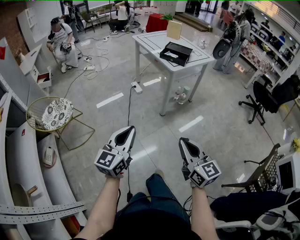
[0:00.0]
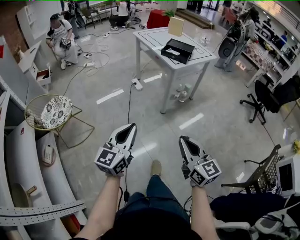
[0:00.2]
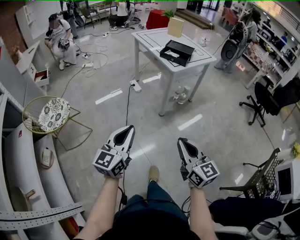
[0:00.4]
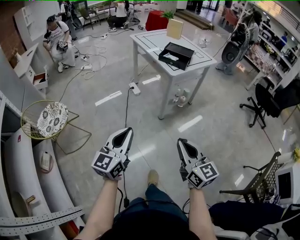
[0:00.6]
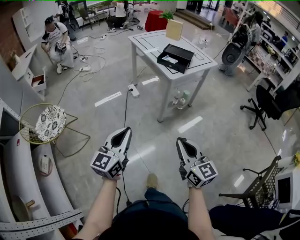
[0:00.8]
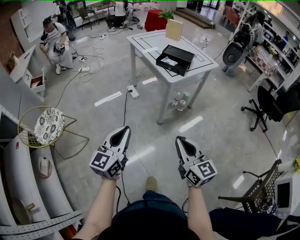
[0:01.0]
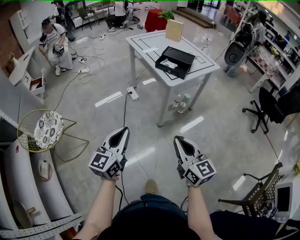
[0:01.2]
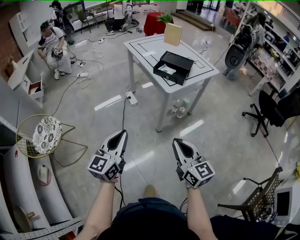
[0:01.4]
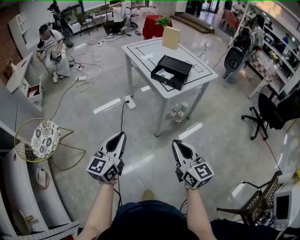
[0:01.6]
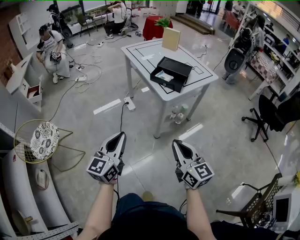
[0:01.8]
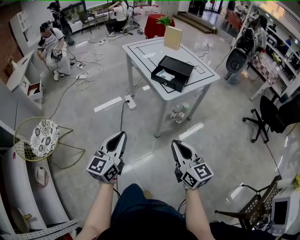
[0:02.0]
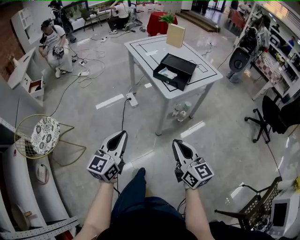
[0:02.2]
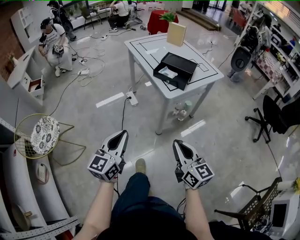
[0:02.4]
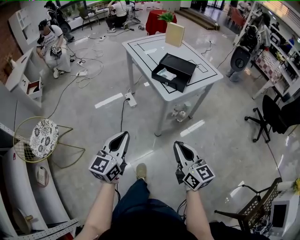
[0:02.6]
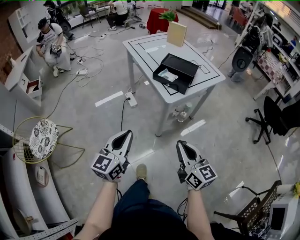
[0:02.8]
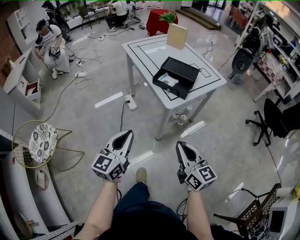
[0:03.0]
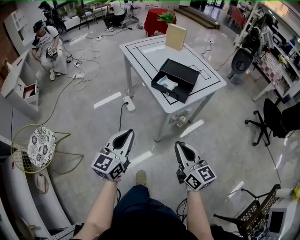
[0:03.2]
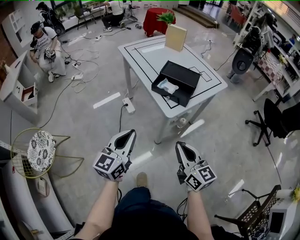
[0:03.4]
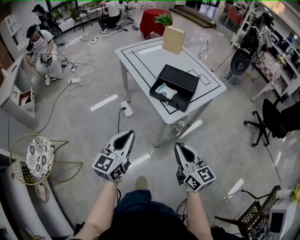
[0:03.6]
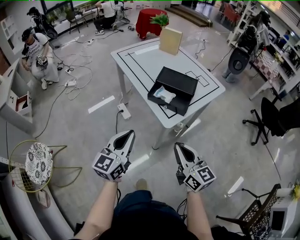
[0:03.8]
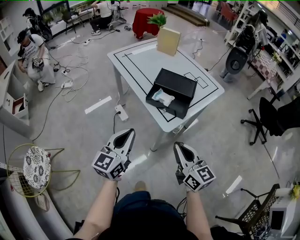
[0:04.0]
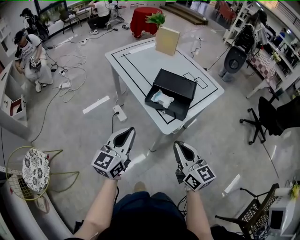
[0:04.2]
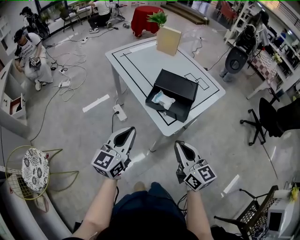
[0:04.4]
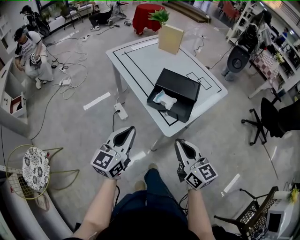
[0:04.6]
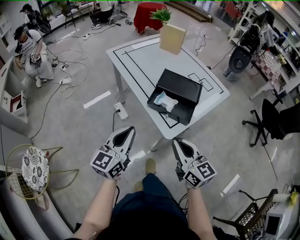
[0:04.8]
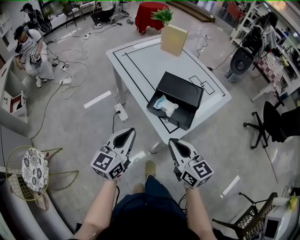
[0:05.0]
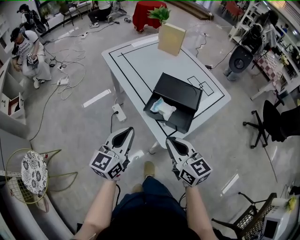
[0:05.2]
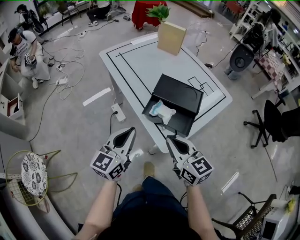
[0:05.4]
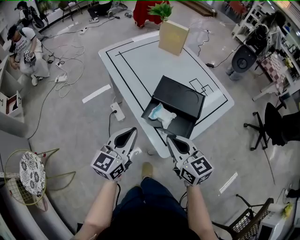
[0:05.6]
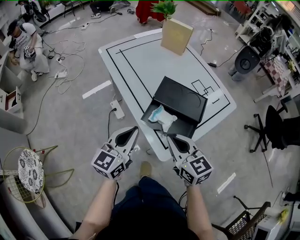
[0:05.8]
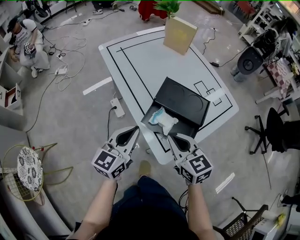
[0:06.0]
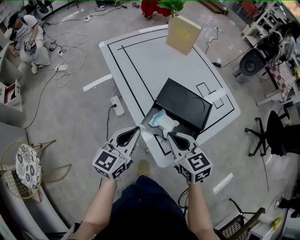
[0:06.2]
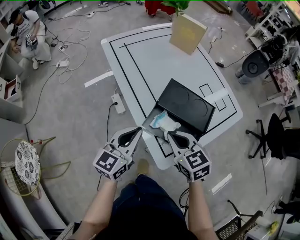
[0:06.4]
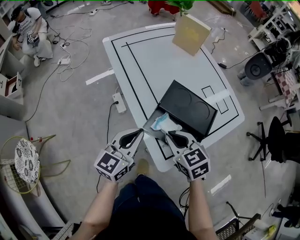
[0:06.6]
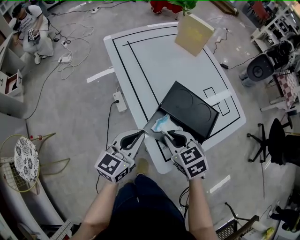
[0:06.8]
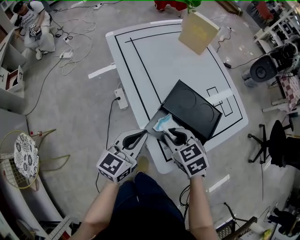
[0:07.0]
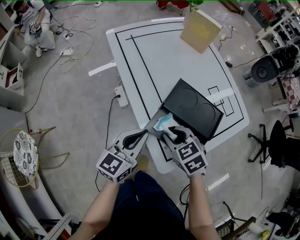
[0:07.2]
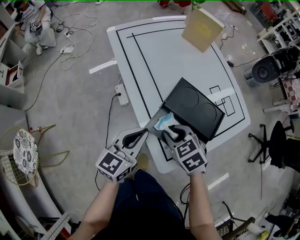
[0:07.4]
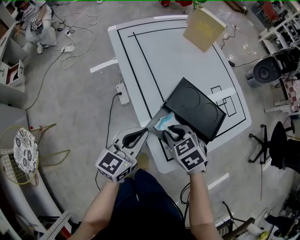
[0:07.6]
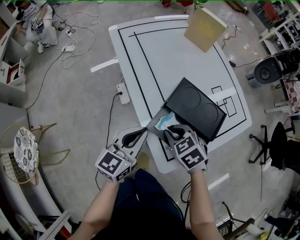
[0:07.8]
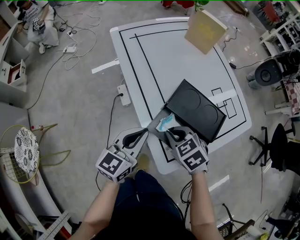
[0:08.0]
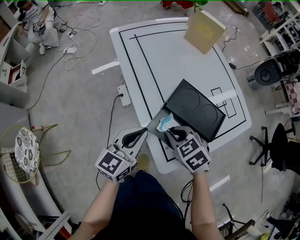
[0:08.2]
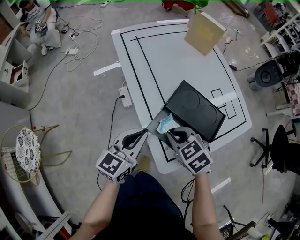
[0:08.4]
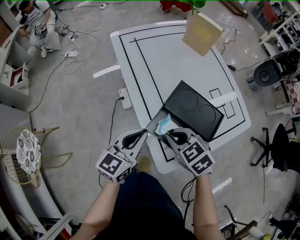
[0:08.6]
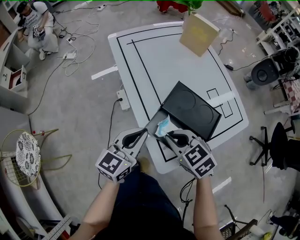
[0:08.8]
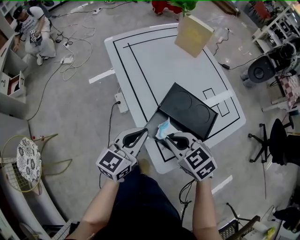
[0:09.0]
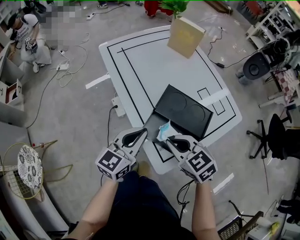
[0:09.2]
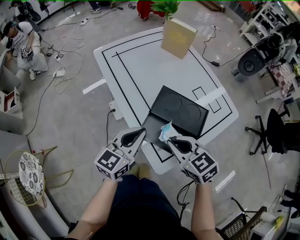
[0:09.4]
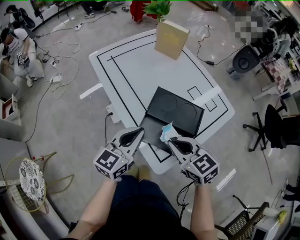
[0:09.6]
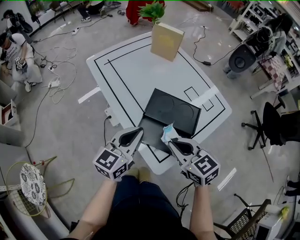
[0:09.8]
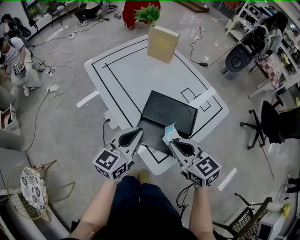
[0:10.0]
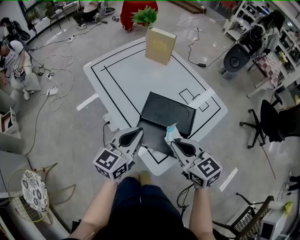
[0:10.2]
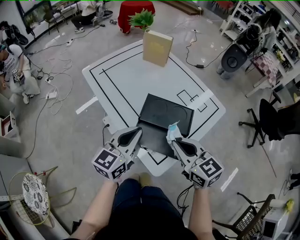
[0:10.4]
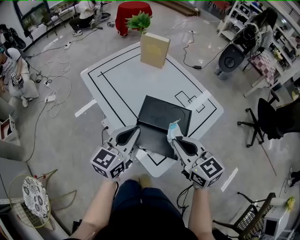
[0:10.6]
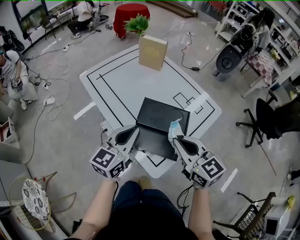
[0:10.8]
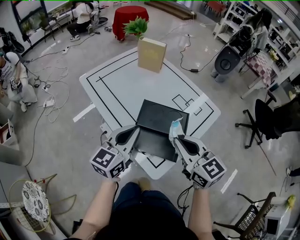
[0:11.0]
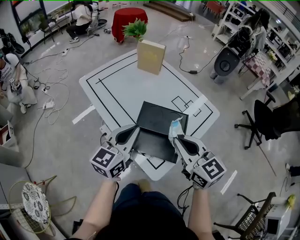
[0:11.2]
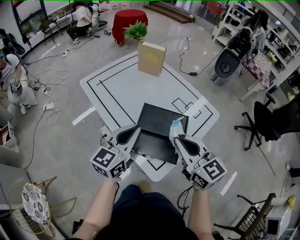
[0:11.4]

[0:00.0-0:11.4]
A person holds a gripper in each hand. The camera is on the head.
0.0 to 1.4 s: Both grippers move forward, some 30 cm.
1.4 to 2.8 s: Both grippers travel together forward and to the right, roughly 15 cm.
2.8 to 4.2 s: Both grippers move forward, some 25 cm.
4.2 to 5.6 s: Both grippers travel together forward, some 15 cm.
5.6 to 7.2 s: The right gripper travels downward and forward by about 15 cm, tilts its fingers roughly 30 degrees downward, and opens. The left gripper is displaced forward and downward by about 10 cm.
7.2 to 8.6 s: The right gripper closes up.
8.6 to 10.0 s: The right gripper is displaced upward and to the right by roughly 10 cm, and turns by roughly 30 degrees. The left gripper goes some 5 cm upward.
10.0 to 11.4 s: The two grippers go approximately 10 cm upward.

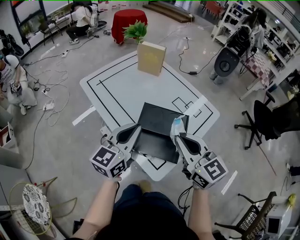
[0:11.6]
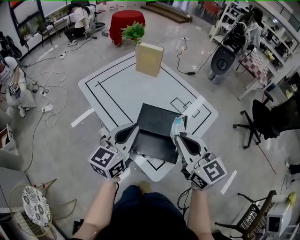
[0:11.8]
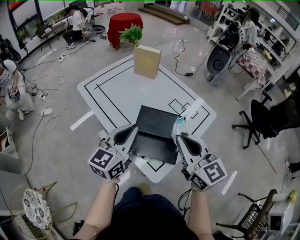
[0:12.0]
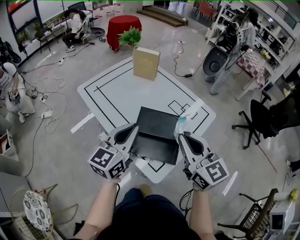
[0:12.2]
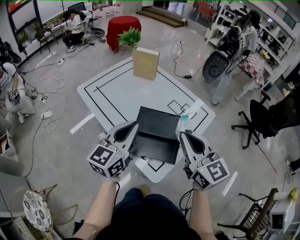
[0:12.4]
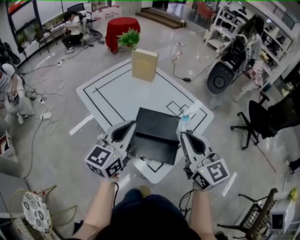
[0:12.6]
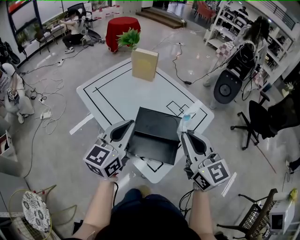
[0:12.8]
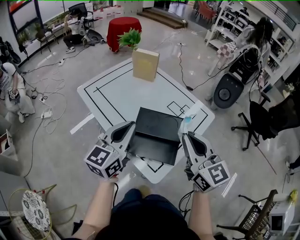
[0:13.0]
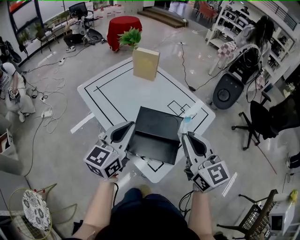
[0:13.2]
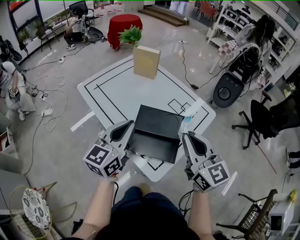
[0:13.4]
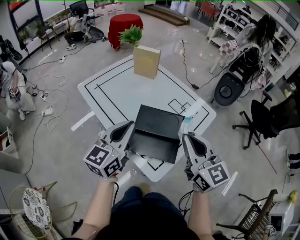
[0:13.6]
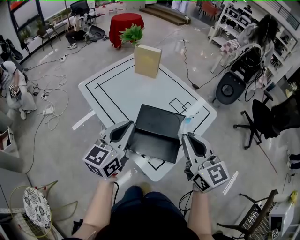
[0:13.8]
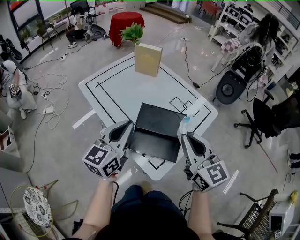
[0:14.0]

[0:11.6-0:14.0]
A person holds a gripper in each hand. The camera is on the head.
11.6 to 12.8 s: The right gripper shifts by roughly 5 cm.
12.8 to 14.0 s: The grippers stay close to where they were, moving slightly.

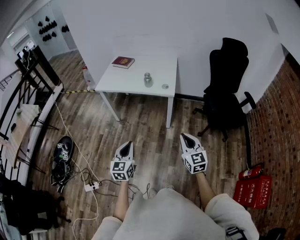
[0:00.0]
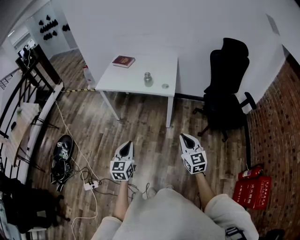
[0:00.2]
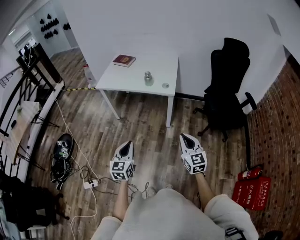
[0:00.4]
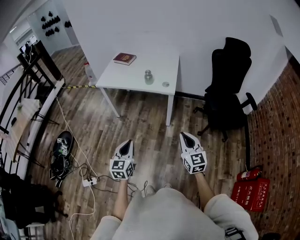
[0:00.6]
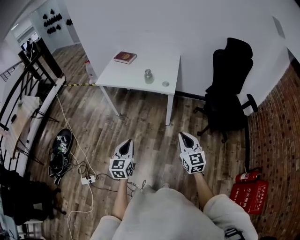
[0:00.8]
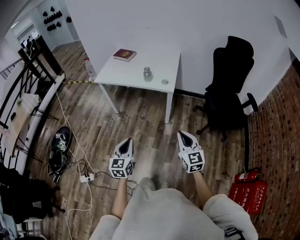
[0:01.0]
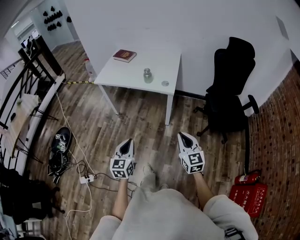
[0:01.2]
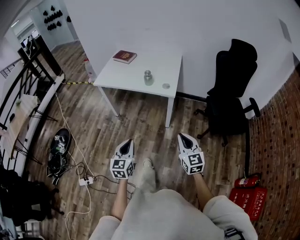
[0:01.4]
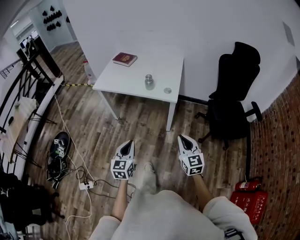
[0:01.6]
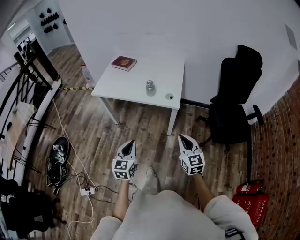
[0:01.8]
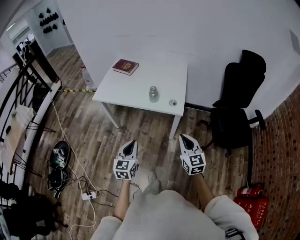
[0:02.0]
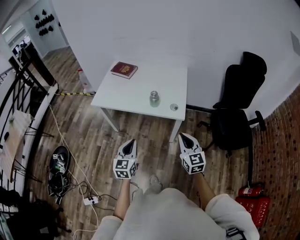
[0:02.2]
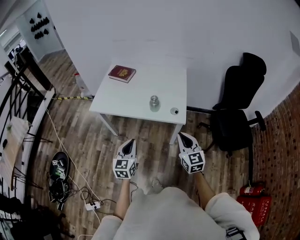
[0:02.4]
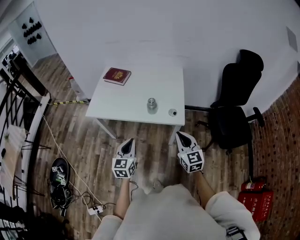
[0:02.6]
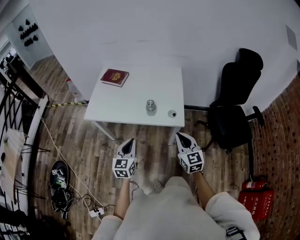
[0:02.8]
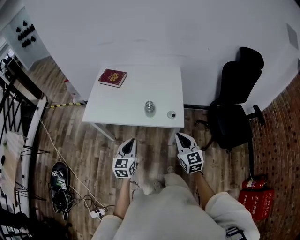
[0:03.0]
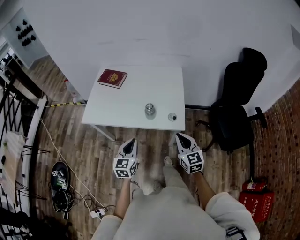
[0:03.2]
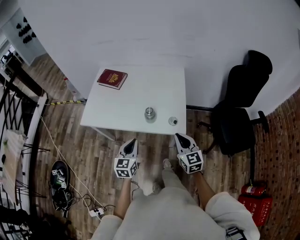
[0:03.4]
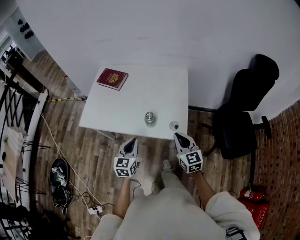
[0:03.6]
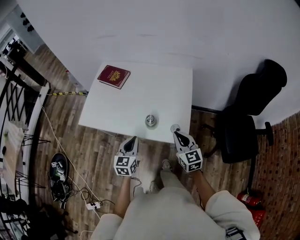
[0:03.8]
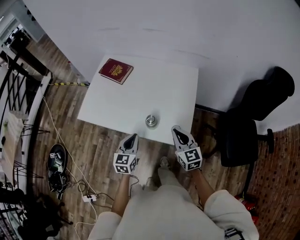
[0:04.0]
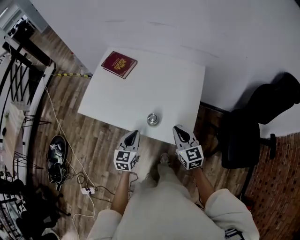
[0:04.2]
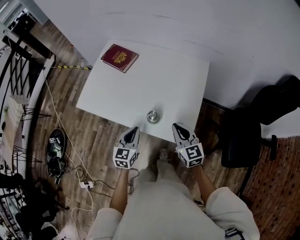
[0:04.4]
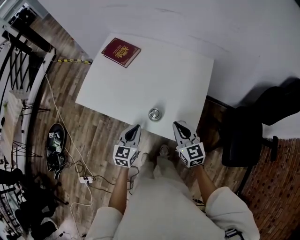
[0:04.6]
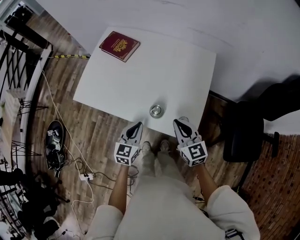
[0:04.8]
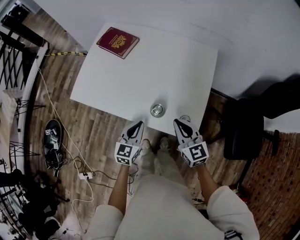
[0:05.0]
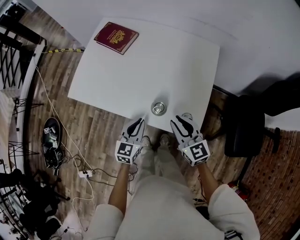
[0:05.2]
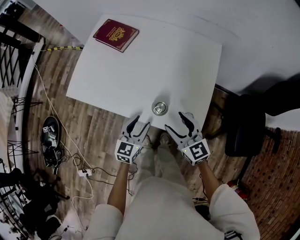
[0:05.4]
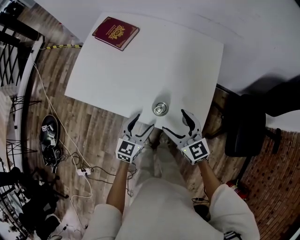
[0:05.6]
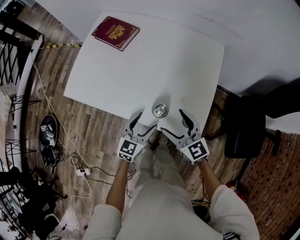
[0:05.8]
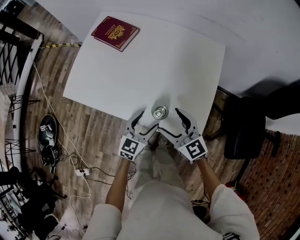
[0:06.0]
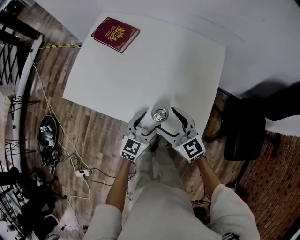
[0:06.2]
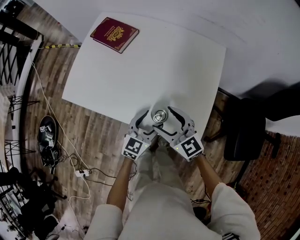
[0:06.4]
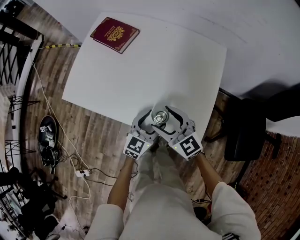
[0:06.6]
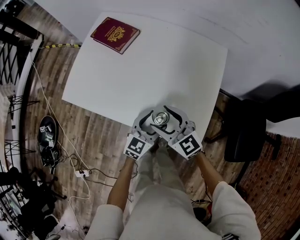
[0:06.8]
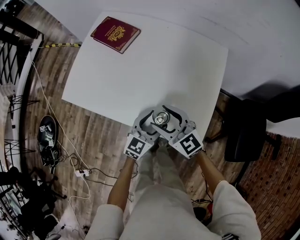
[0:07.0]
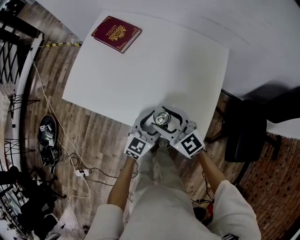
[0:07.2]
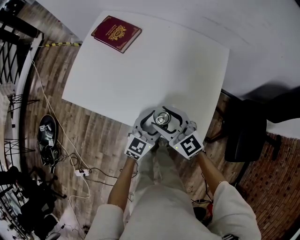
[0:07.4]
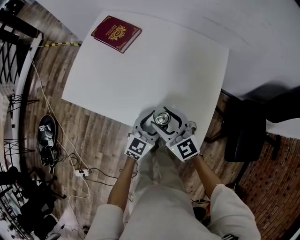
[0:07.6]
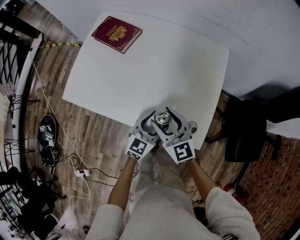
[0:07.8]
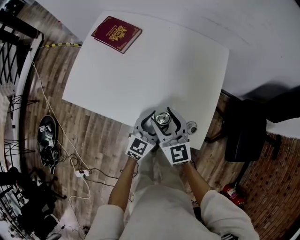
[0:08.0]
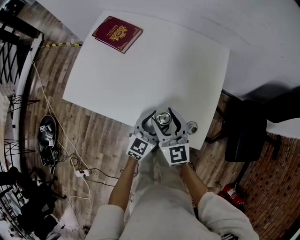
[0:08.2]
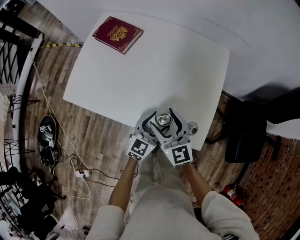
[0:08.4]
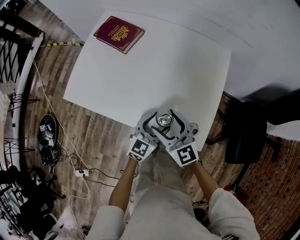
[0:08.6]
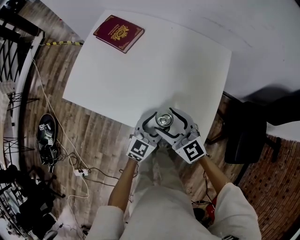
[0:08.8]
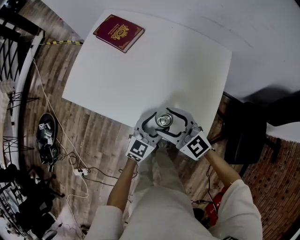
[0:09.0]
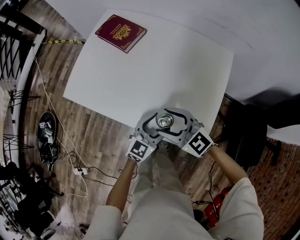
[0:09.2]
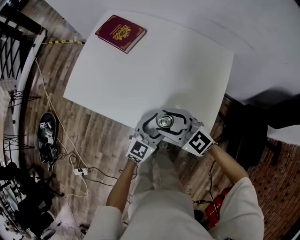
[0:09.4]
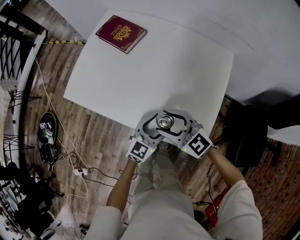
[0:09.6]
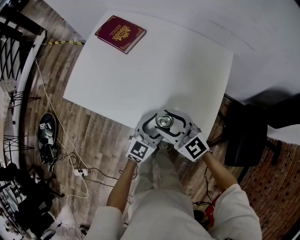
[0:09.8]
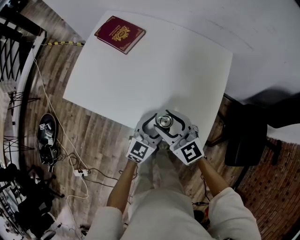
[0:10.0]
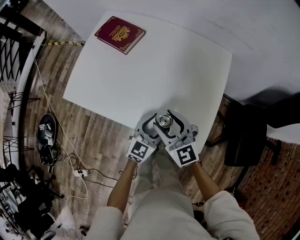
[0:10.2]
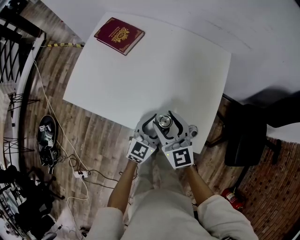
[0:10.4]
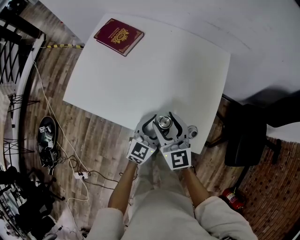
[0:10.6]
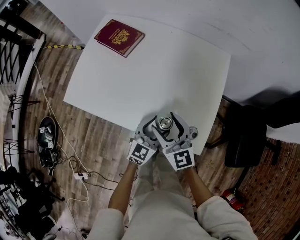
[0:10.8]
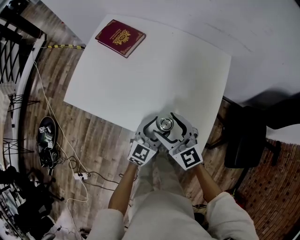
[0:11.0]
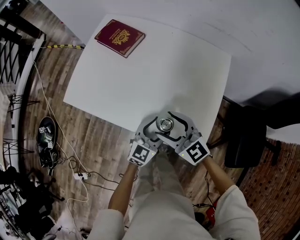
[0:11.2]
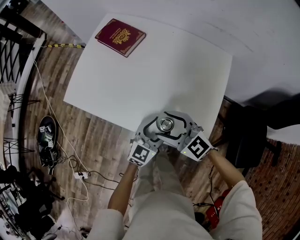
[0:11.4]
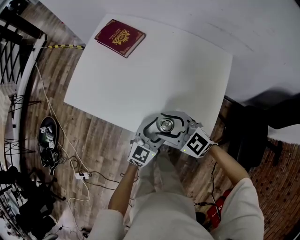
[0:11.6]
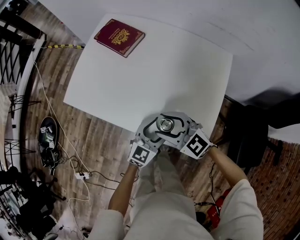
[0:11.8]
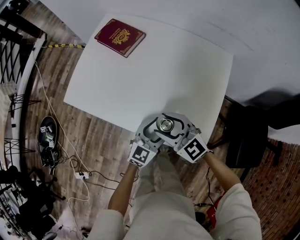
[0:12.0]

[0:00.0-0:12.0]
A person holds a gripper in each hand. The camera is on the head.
0.0 to 1.6 s: The grippers both shift forward by approximately 10 cm.
1.6 to 3.0 s: Both grippers travel together forward, about 30 cm.
3.0 to 4.4 s: The right gripper goes approximately 25 cm forward, and rotates roughly 20 degrees, while the left gripper heads forward and downward, covering about 20 cm.
4.4 to 6.0 s: The right gripper is displaced to the left and downward by approximately 10 cm, and opens its fingers. Meanwhile the left gripper goes about 10 cm downward, and opens.
6.0 to 7.6 s: The right gripper ends up about 5 cm from where it was.
7.6 to 9.0 s: The grippers stay close to where they were, moving slightly.
9.0 to 10.4 s: The right gripper swivels some 30 degrees.
10.4 to 12.0 s: The right gripper swivels approximately 30 degrees.
